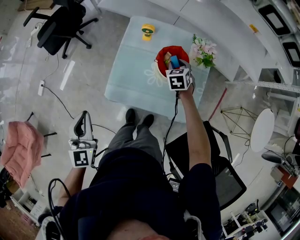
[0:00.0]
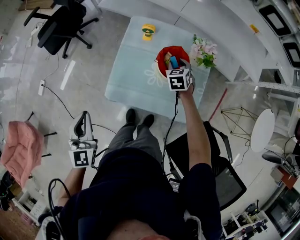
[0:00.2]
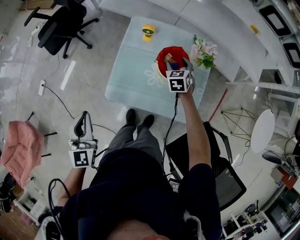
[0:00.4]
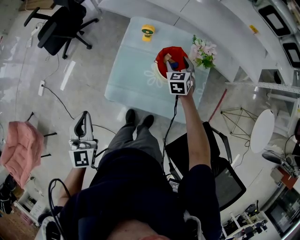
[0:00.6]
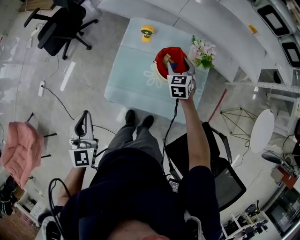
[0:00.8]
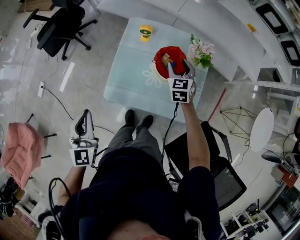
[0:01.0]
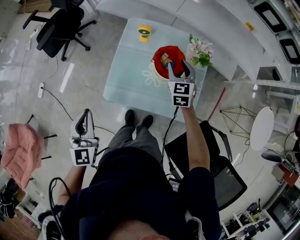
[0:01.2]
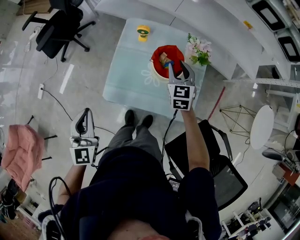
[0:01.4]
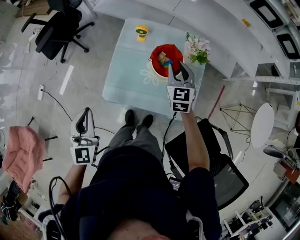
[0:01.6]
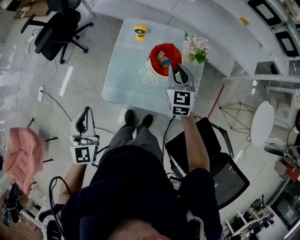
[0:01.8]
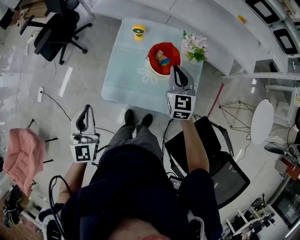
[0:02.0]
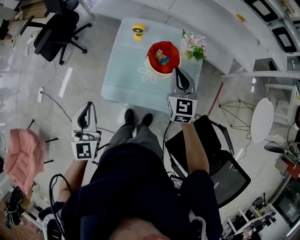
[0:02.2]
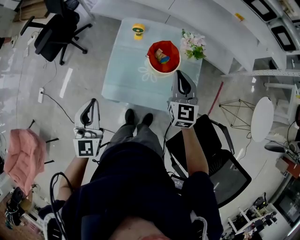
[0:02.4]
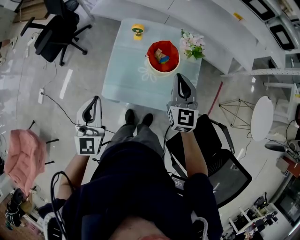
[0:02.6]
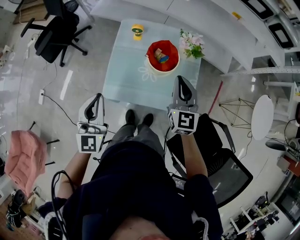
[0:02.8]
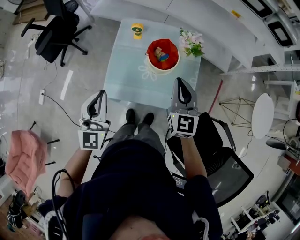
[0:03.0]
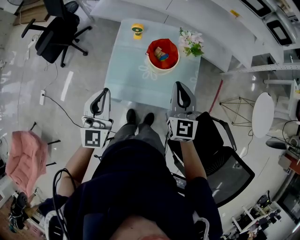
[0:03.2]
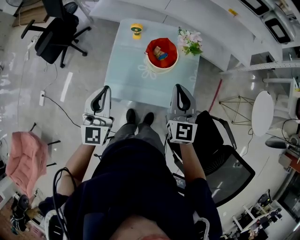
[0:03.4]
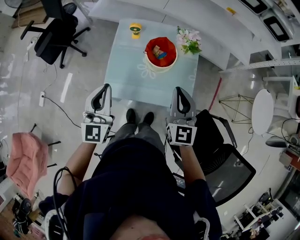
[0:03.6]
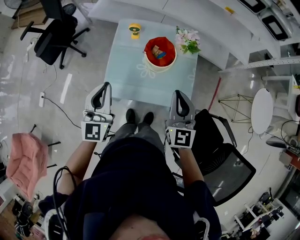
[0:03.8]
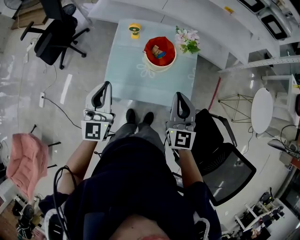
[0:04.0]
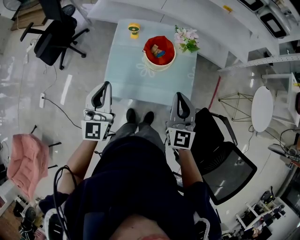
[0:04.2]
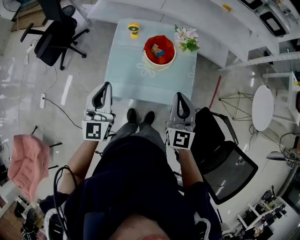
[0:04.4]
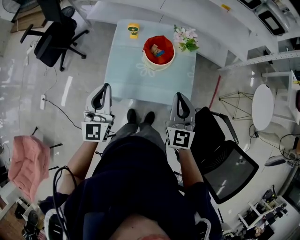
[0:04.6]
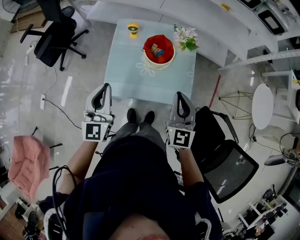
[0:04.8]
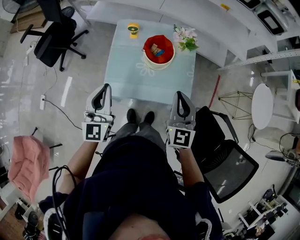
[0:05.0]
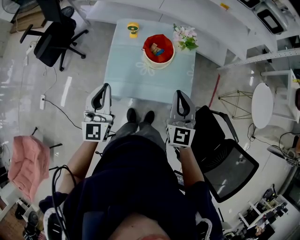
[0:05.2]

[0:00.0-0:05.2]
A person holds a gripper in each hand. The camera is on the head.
0.0 to 1.8 s: The right gripper travels upward and backward by some 15 cm, turns by some 30 degrees, and opens and closes again.
1.8 to 3.4 s: The right gripper moves backward and upward, roughly 15 cm. The left gripper travels to the right by about 10 cm.
3.4 to 5.2 s: The right gripper goes approximately 5 cm backward.

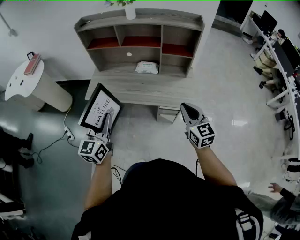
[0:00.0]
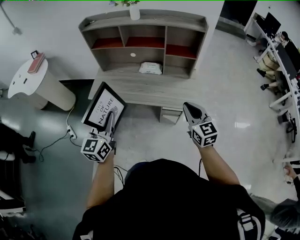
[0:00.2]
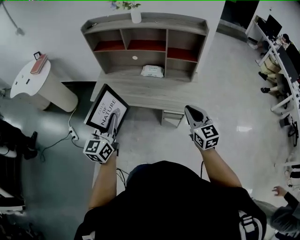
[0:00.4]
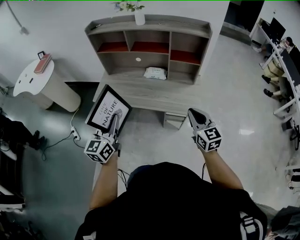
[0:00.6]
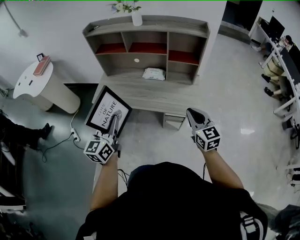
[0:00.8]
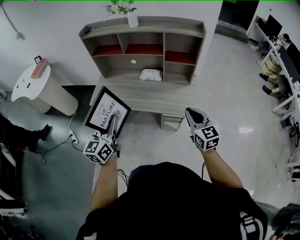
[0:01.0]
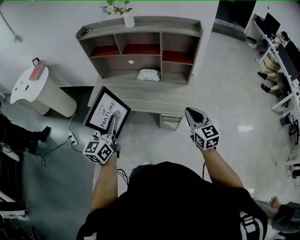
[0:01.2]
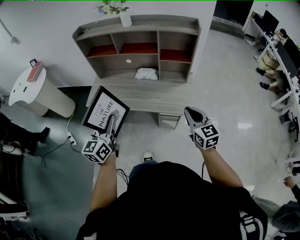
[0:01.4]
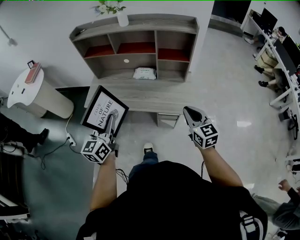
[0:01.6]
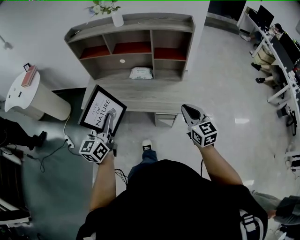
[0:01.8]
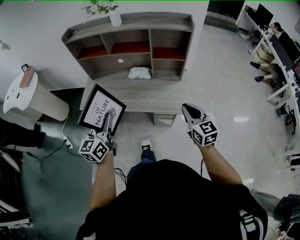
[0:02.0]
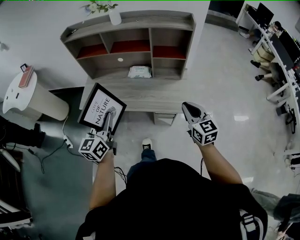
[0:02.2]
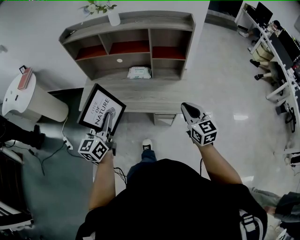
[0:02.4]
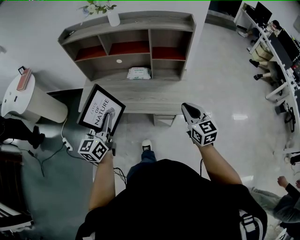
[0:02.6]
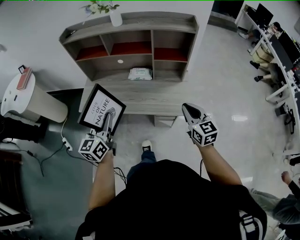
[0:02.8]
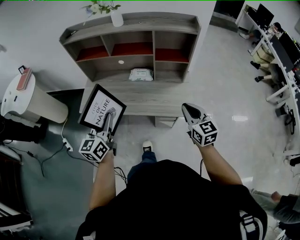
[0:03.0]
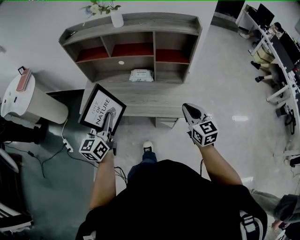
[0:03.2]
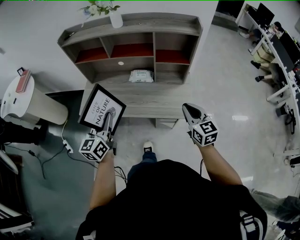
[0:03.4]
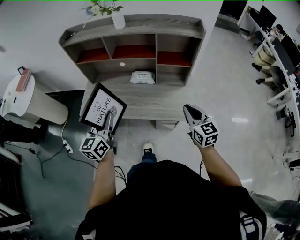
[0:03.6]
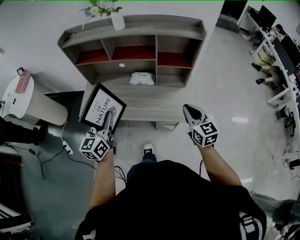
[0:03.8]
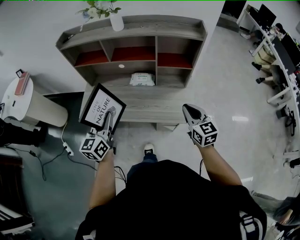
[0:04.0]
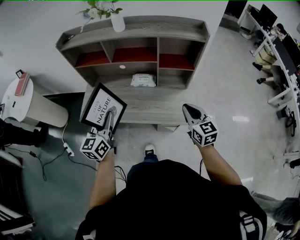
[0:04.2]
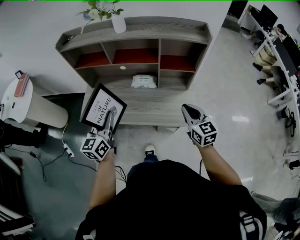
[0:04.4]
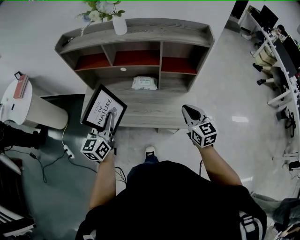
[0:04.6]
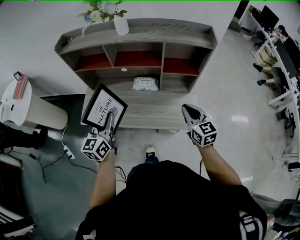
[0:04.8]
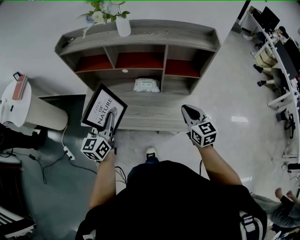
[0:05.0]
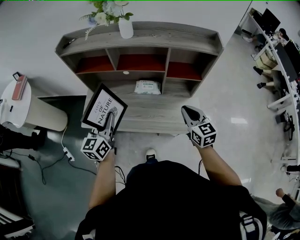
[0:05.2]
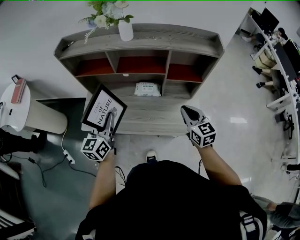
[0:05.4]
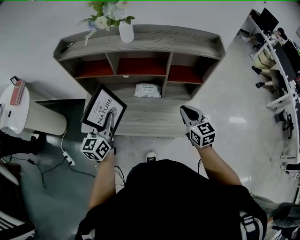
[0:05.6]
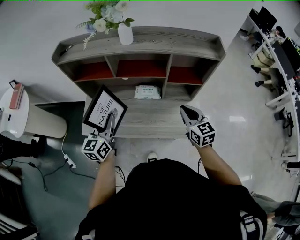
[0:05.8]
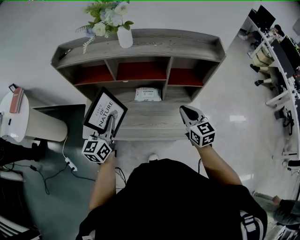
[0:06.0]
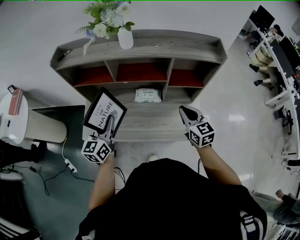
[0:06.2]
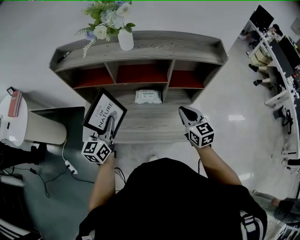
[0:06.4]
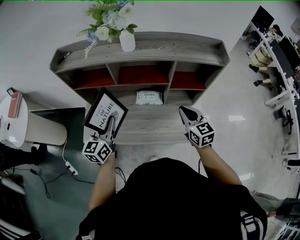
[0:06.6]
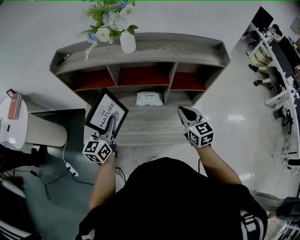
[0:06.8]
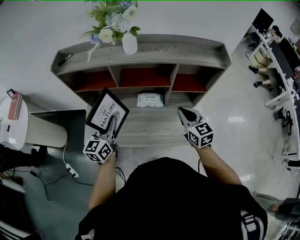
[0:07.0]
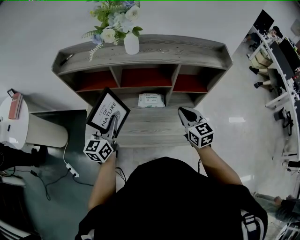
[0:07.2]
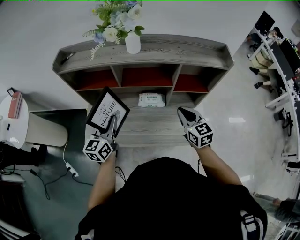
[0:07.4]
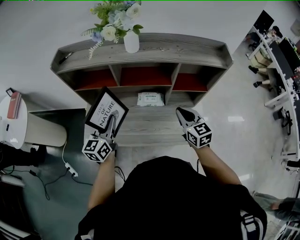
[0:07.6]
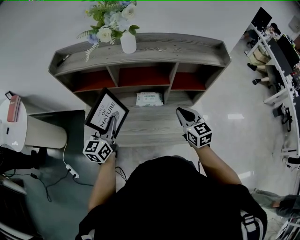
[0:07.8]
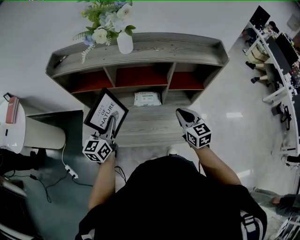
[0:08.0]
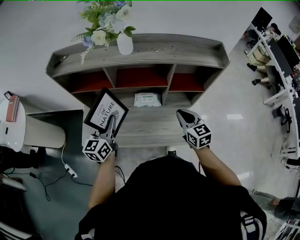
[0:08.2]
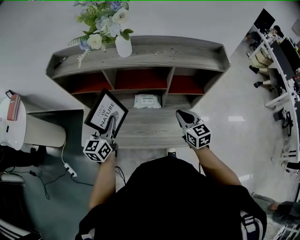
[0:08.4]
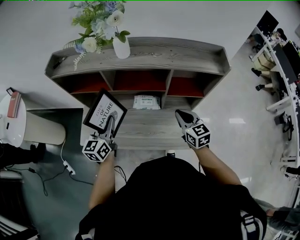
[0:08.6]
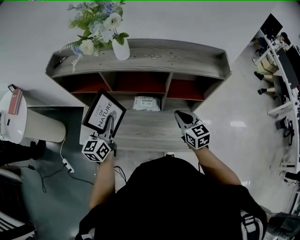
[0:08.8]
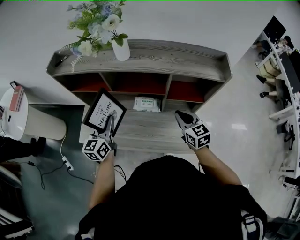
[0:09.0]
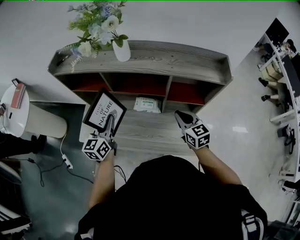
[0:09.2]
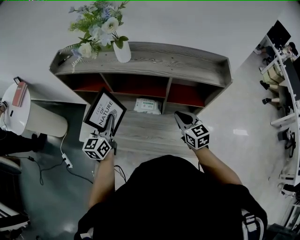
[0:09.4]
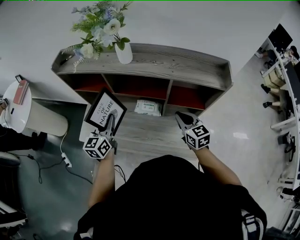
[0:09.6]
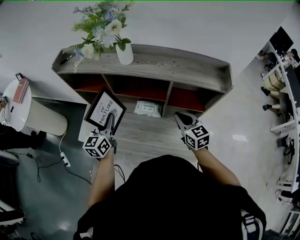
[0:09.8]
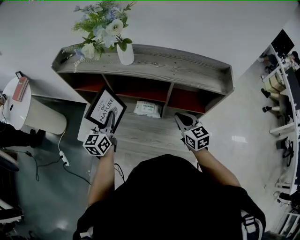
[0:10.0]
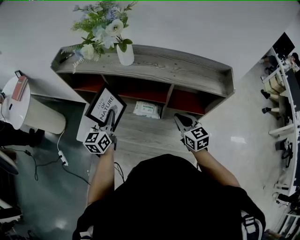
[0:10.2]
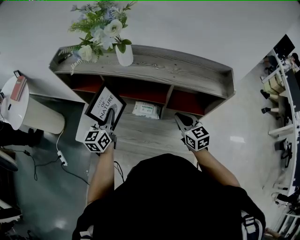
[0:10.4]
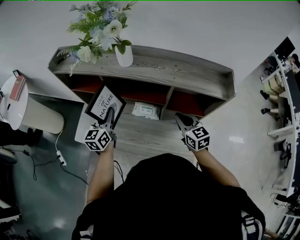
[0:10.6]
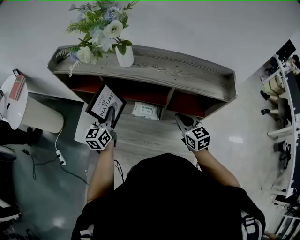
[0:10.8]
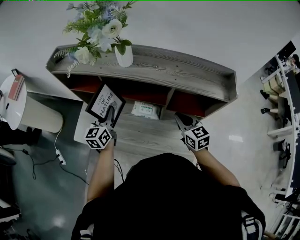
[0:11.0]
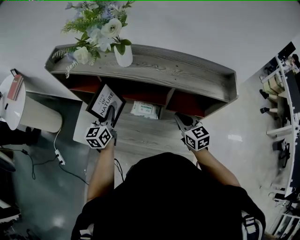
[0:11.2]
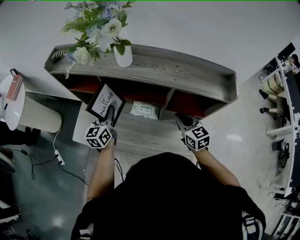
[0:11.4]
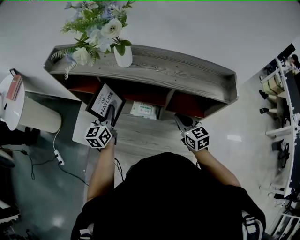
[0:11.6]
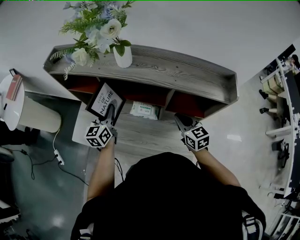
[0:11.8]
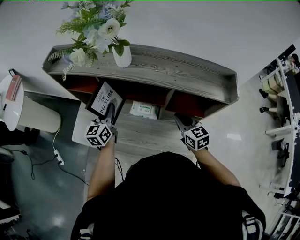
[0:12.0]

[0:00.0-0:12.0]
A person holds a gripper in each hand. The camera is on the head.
0.0 to 1.6 s: Both grippers travel together to the right, roughly 5 cm.
1.6 to 3.0 s: Both grippers move forward, about 5 cm.
3.0 to 4.4 s: The two grippers go some 10 cm forward.
4.4 to 6.0 s: The left gripper moves forward, about 10 cm. The right gripper heads forward and to the left, covering some 15 cm.
6.0 to 7.6 s: The left gripper moves roughly 5 cm. Meanwhile the right gripper moves approximately 5 cm.
7.6 to 9.0 s: The right gripper goes about 5 cm to the right. The left gripper ends up roughly 5 cm from where it was.
9.0 to 10.4 s: The left gripper is displaced forward by approximately 5 cm.
10.4 to 12.0 s: The left gripper ends up approximately 5 cm from where it was.

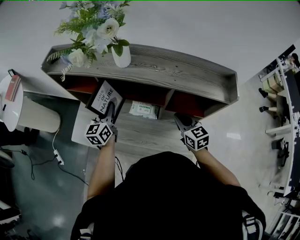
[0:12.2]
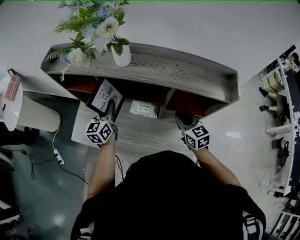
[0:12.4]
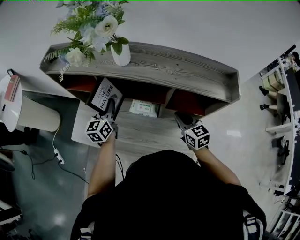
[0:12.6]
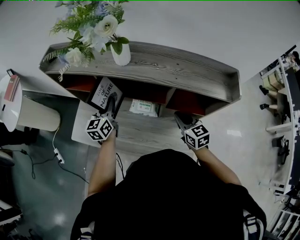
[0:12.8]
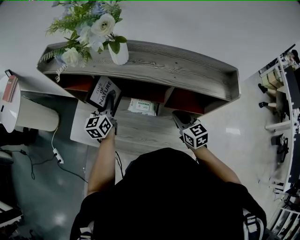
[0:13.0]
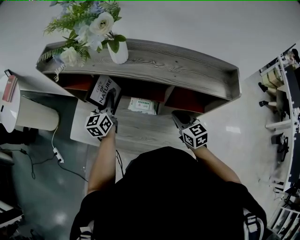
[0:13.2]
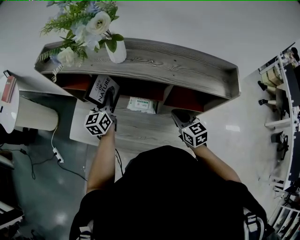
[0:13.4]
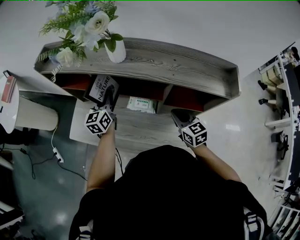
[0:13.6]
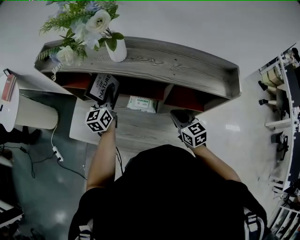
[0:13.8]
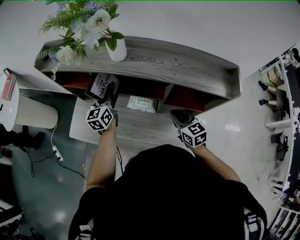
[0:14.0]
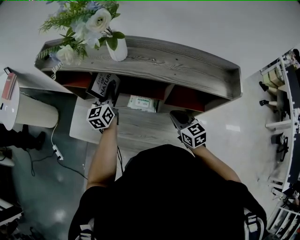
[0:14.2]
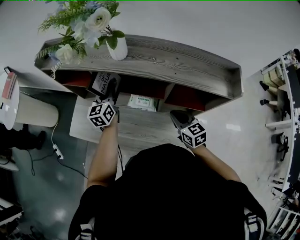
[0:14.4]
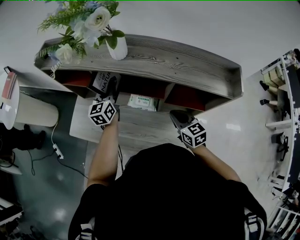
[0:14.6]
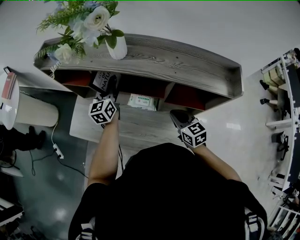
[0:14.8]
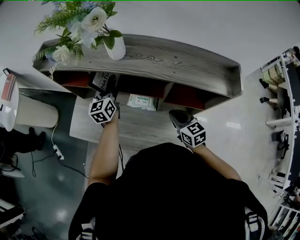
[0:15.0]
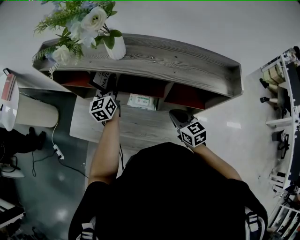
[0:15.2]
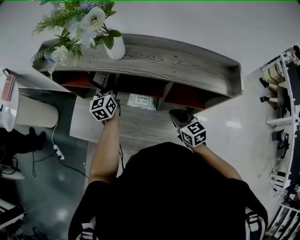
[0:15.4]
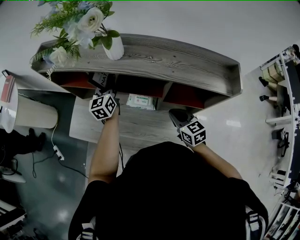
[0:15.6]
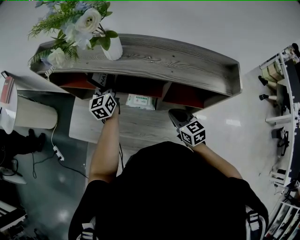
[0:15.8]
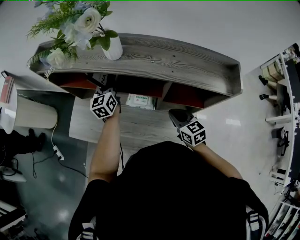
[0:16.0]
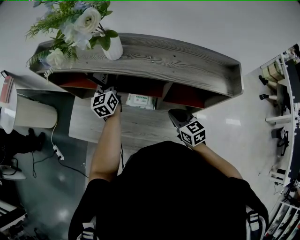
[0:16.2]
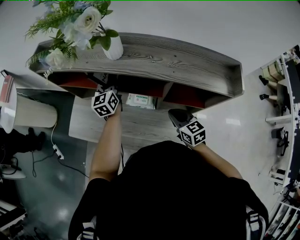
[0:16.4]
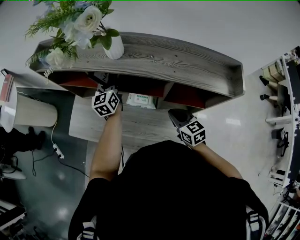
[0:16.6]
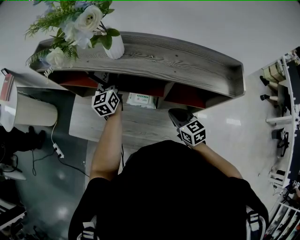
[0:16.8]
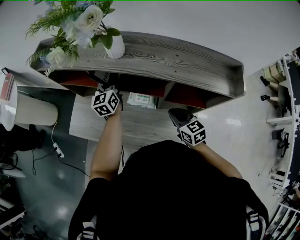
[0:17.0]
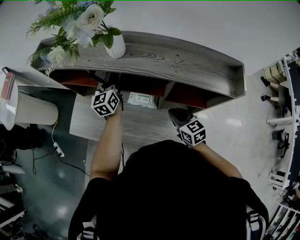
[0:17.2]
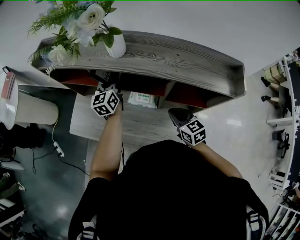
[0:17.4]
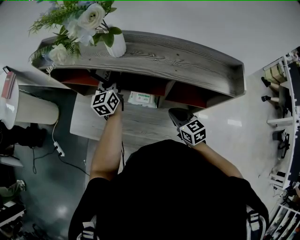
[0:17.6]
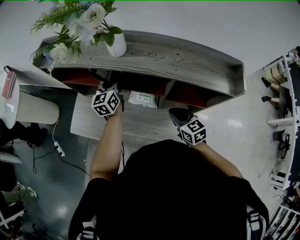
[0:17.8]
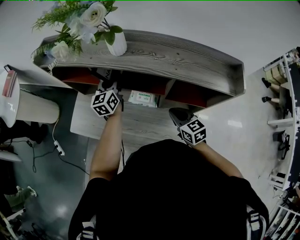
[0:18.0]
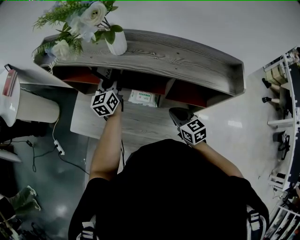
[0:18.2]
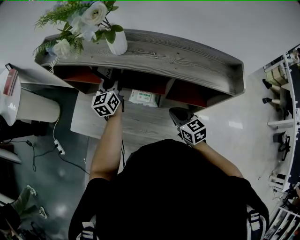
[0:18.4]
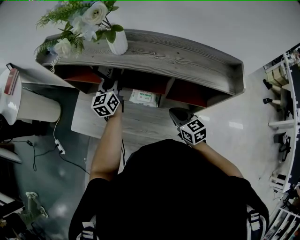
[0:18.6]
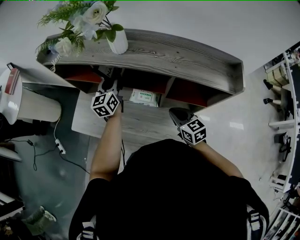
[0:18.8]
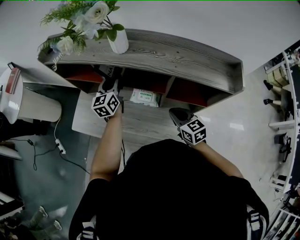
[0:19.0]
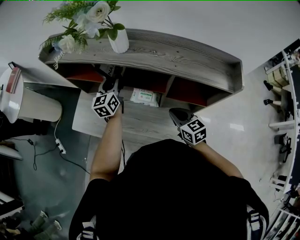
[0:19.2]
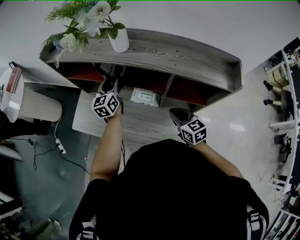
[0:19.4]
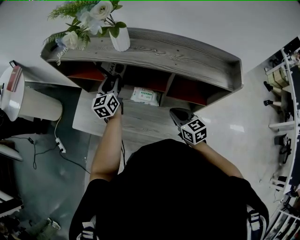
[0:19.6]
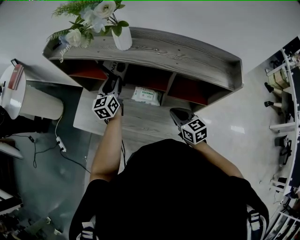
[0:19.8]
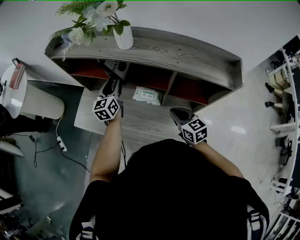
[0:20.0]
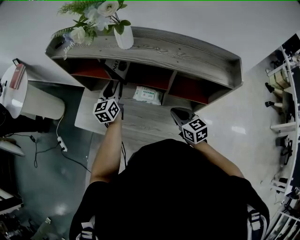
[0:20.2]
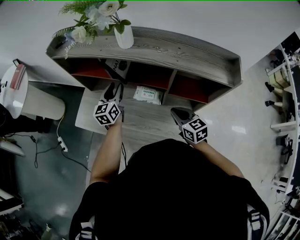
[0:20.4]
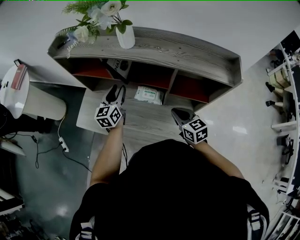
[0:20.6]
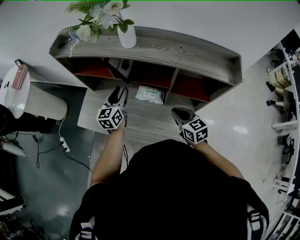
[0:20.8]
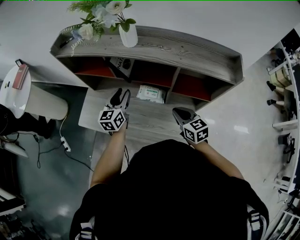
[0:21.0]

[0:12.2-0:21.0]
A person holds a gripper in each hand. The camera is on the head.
12.2 to 13.6 s: The grippers stay close to where they were, moving slightly.
13.6 to 15.2 s: The grippers move only a little.
15.2 to 16.6 s: The grippers stay close to where they were, moving slightly.
16.6 to 18.0 s: The left gripper opens its fingers.
18.0 to 19.6 s: There are only small adjustments of the grippers.
19.6 to 21.0 s: The left gripper goes roughly 10 cm backward.
